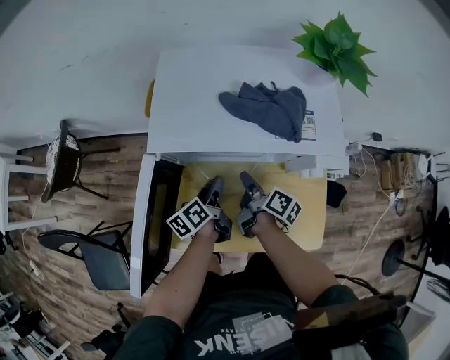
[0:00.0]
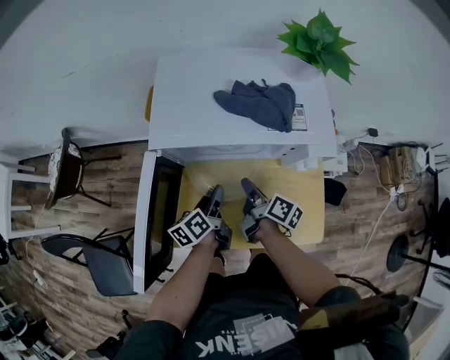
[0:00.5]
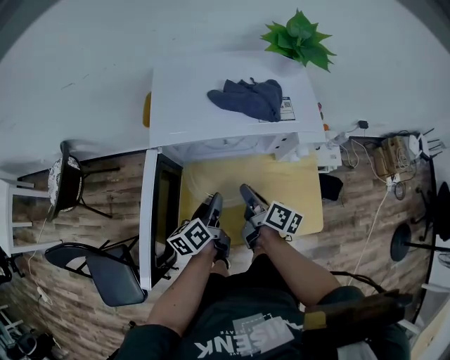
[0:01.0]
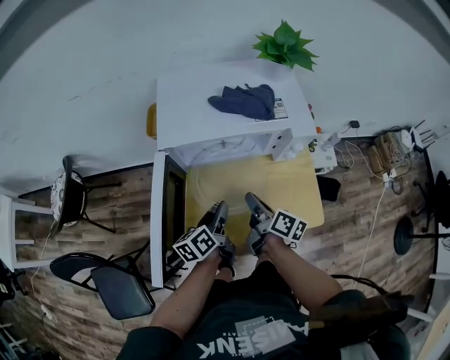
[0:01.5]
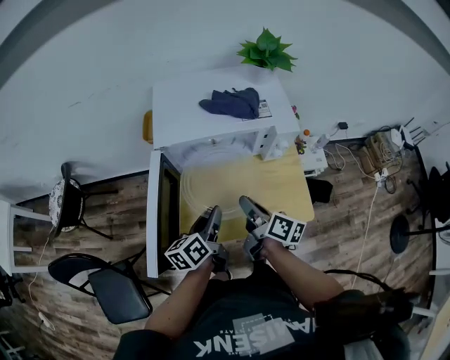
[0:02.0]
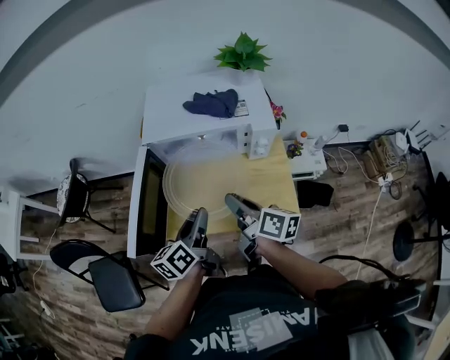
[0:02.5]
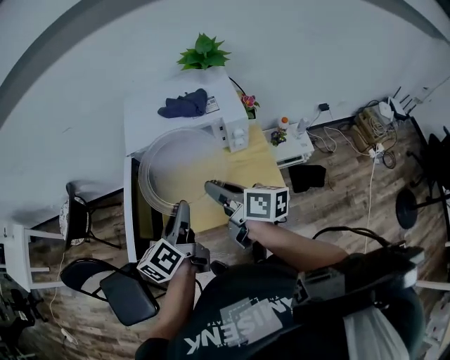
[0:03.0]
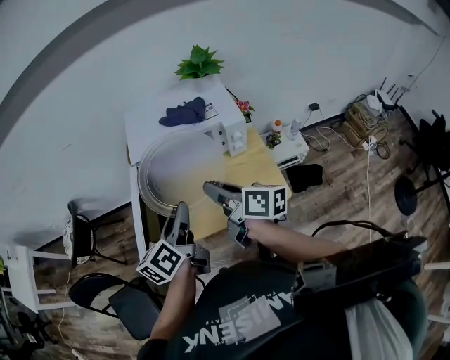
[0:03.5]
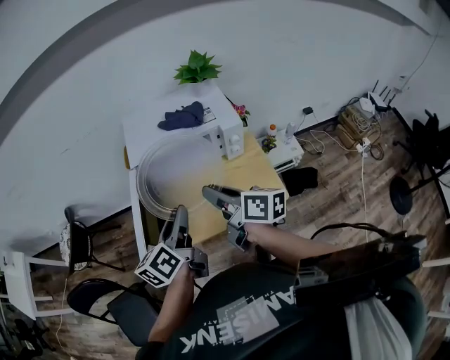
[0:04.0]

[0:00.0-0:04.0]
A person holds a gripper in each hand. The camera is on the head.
0:00.0 to 0:02.0: Both grippers travel together backward and upward, about 20 cm. The left gripper changes its angle by about 20 degrees.
0:02.0 to 0:04.0: Both grippers travel together upward, about 15 cm.

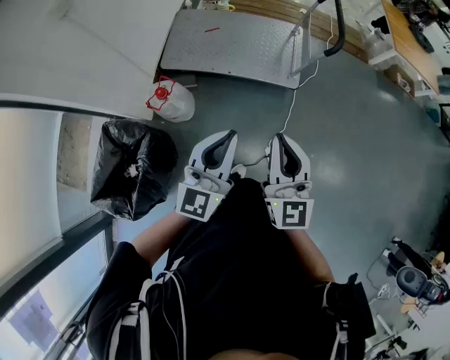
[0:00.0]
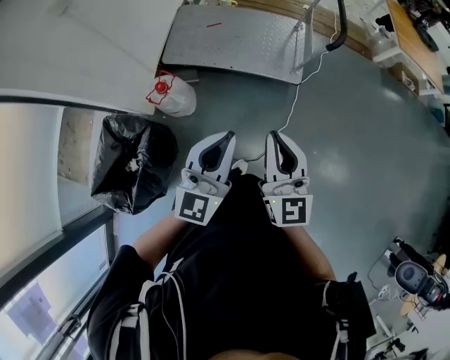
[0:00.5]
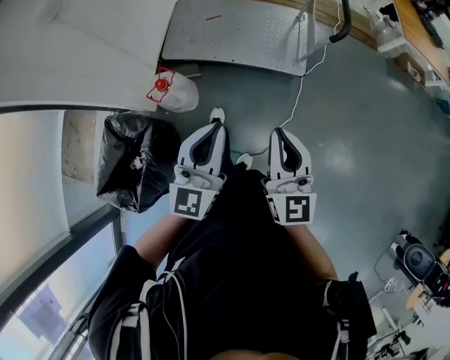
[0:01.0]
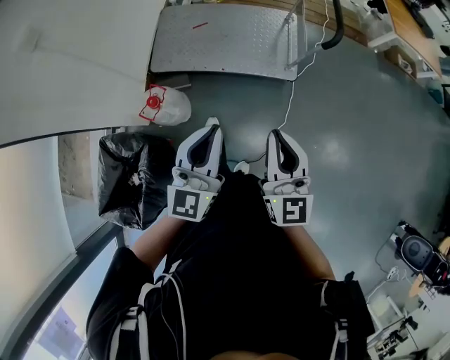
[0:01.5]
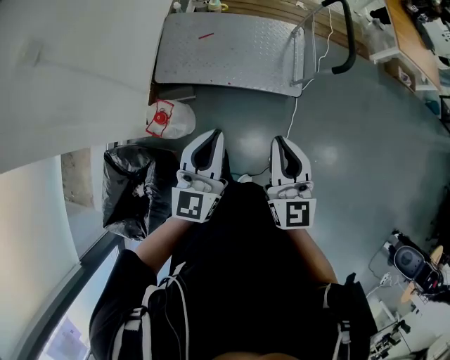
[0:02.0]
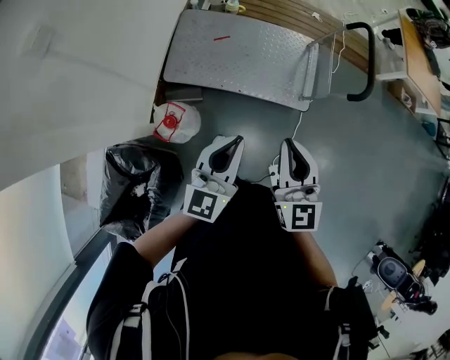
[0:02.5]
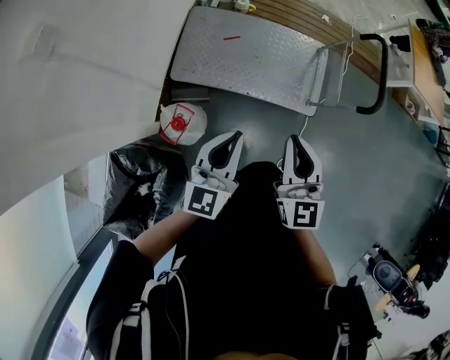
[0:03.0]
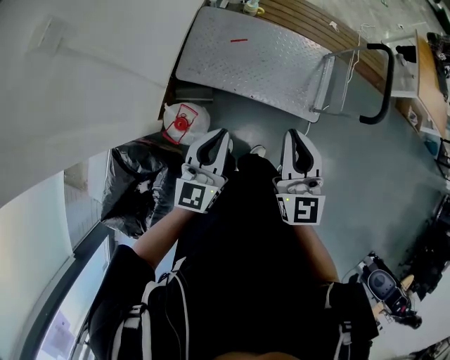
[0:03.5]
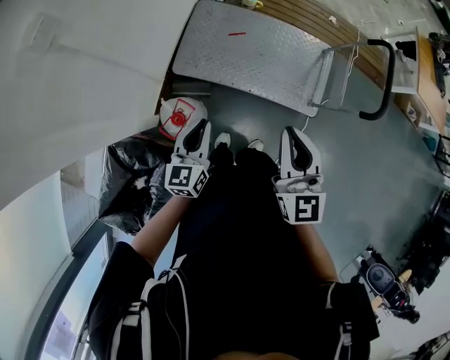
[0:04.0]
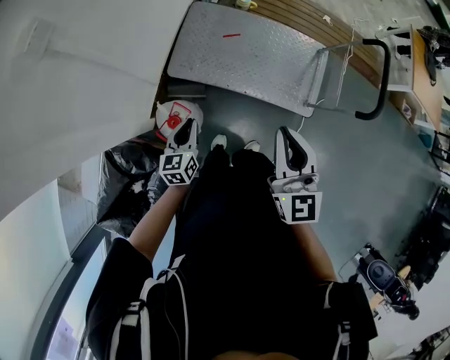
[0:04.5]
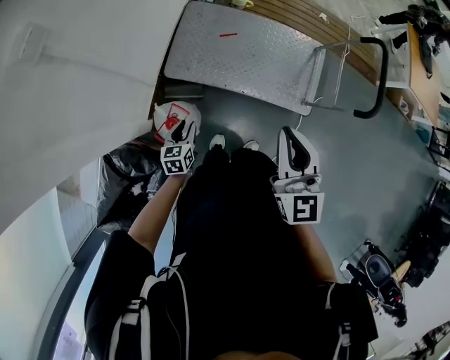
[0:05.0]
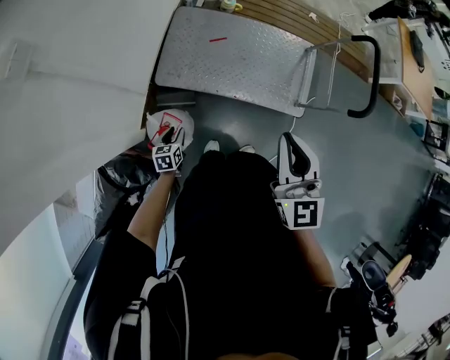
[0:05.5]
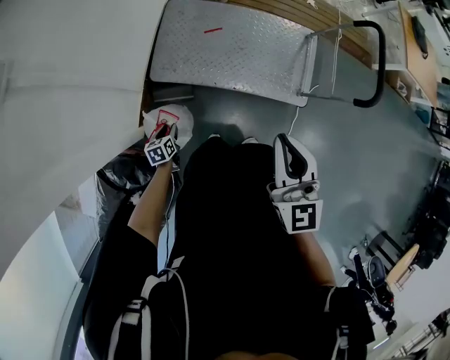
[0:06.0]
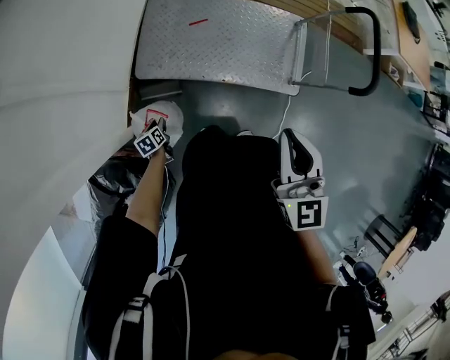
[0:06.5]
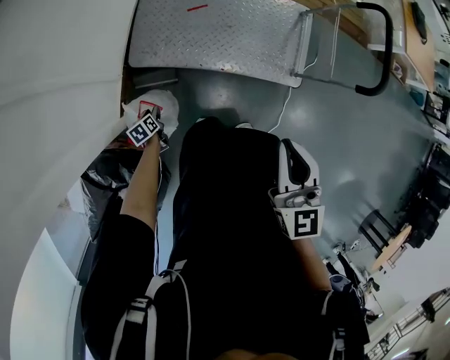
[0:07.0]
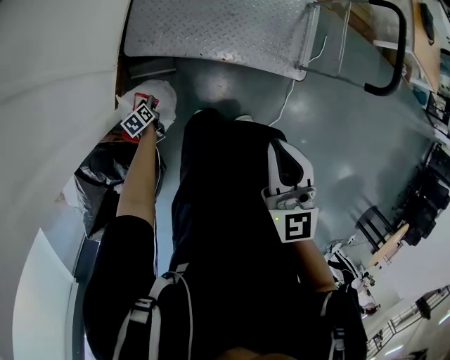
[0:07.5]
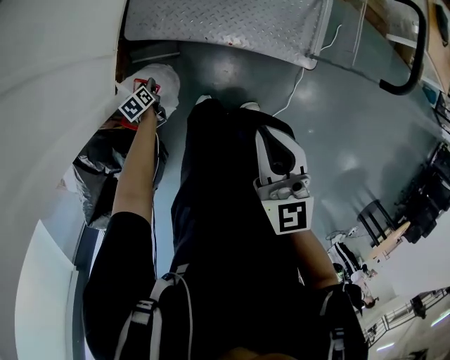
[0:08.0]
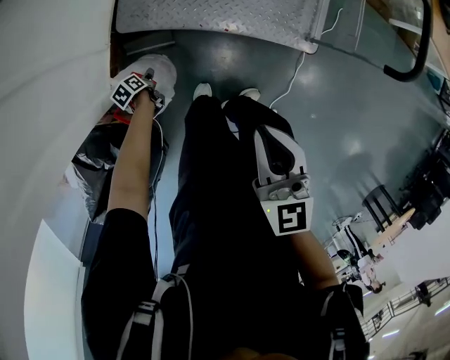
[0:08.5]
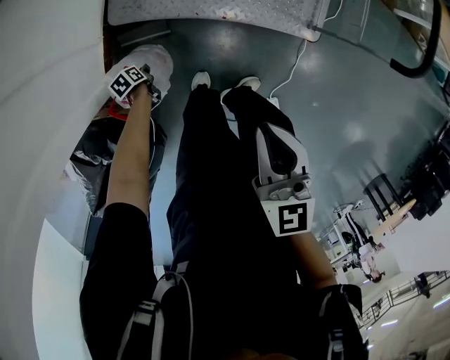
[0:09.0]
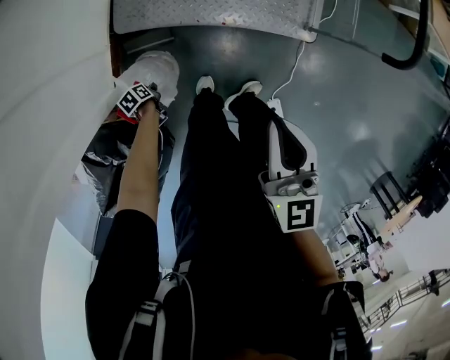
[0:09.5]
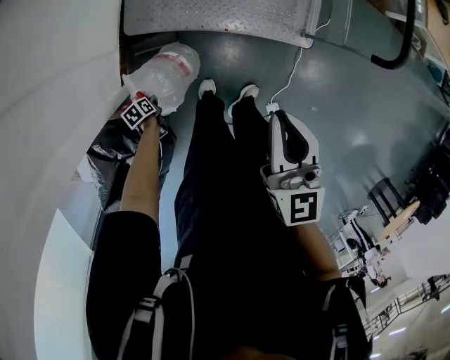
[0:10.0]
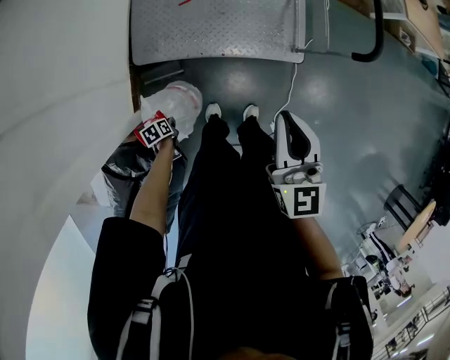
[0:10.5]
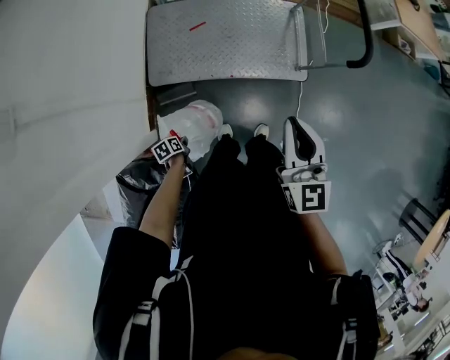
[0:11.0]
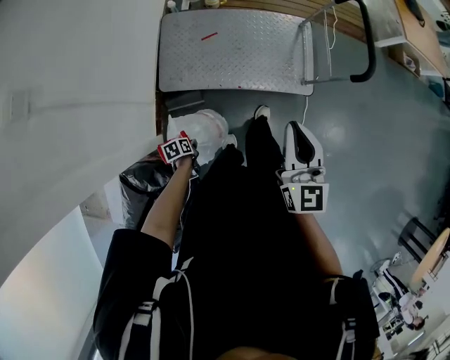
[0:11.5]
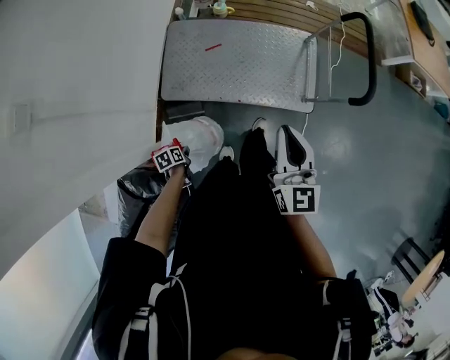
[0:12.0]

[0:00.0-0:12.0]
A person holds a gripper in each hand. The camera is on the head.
0:00.0 to 0:02.0: The right gripper is displaced forward by some 15 cm; the left gripper goes roughly 20 cm forward and to the left.
0:02.0 to 0:04.0: The right gripper goes about 20 cm forward and to the left. The left gripper moves to the left, downward and forward, roughly 30 cm, and changes its angle by approximately 20 degrees.
0:04.0 to 0:06.0: The left gripper is displaced downward by some 35 cm, points its fingers about 40 degrees further downward, and opens its fingers.
0:06.0 to 0:08.0: The two grippers go some 15 cm downward.
0:08.0 to 0:10.0: The right gripper travels upward by about 10 cm. The left gripper shifts by about 10 cm, and closes up.
0:10.0 to 0:12.0: The left gripper moves upward and to the right, approximately 15 cm. The right gripper heads to the right, upward and forward, covering roughly 10 cm.

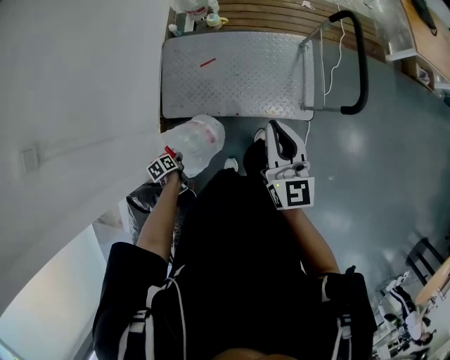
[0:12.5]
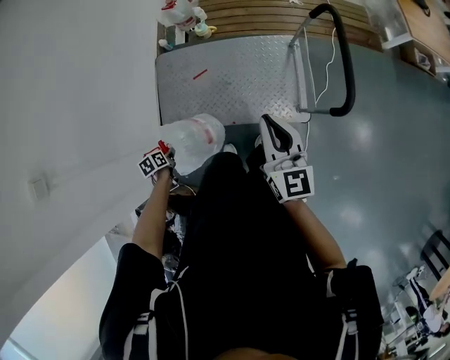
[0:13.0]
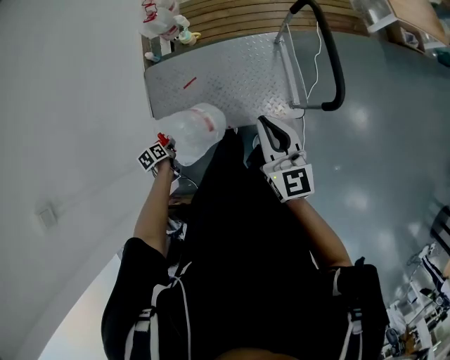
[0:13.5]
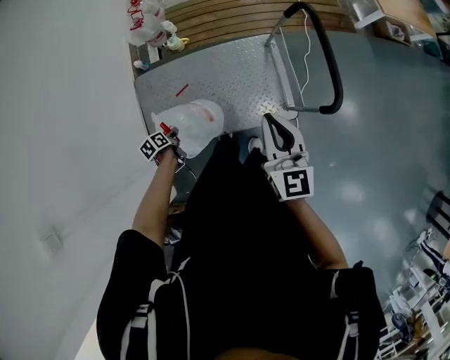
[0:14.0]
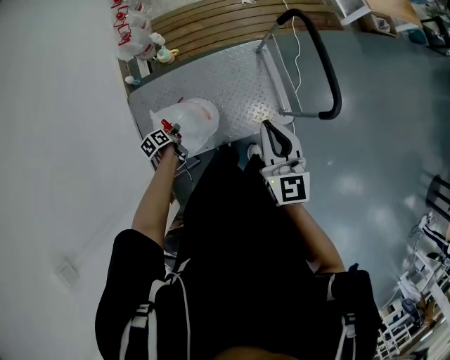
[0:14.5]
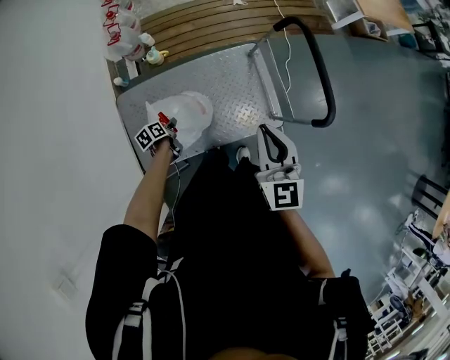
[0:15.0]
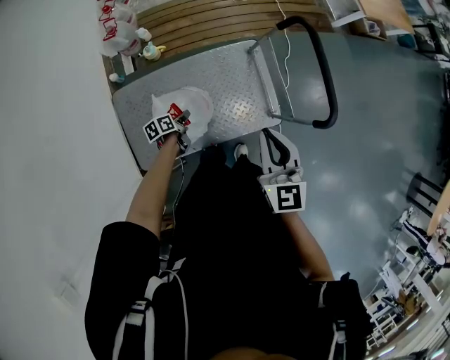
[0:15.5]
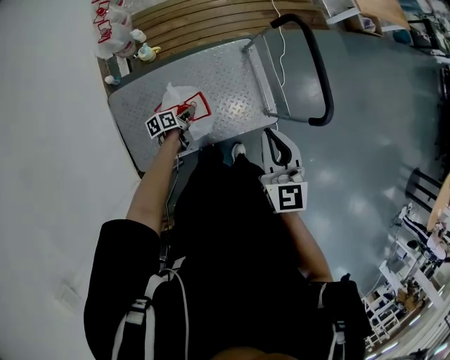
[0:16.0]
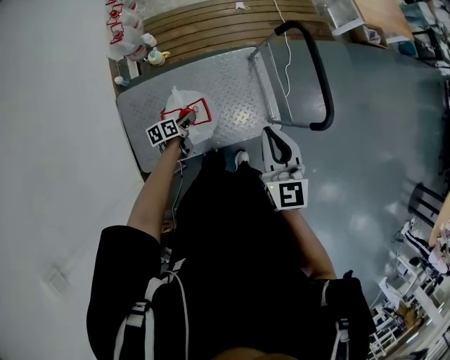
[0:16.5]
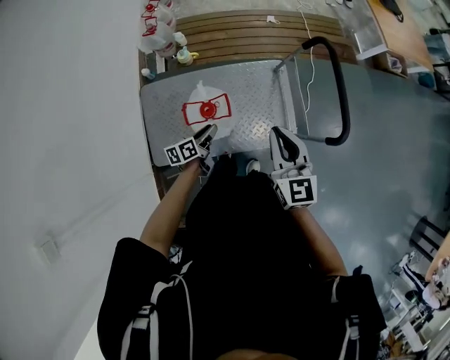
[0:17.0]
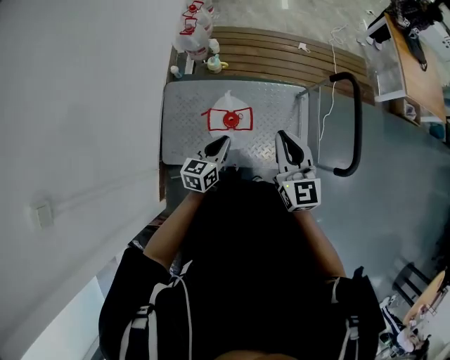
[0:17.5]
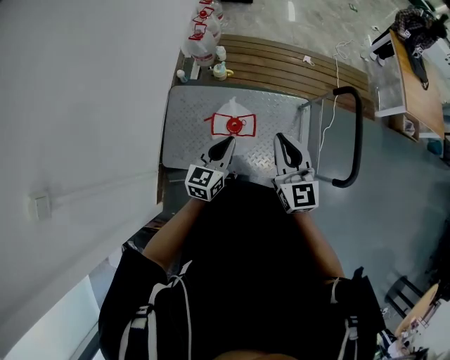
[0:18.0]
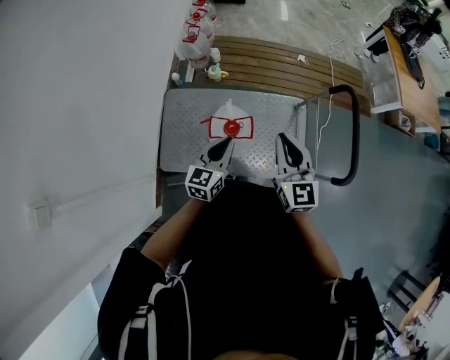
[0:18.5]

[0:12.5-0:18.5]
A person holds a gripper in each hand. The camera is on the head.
0:12.5 to 0:14.5: The left gripper shifts some 40 cm forward, and changes its angle by approximately 20 degrees, while the right gripper moves forward, roughly 15 cm, and rotates approximately 20 degrees.
0:14.5 to 0:16.5: The left gripper heads forward and to the right, covering about 10 cm, rotates roughly 20 degrees, and opens up.
0:16.5 to 0:18.5: The left gripper moves upward, about 25 cm, turns by approximately 50 degrees, and closes; the right gripper changes place by approximately 10 cm.

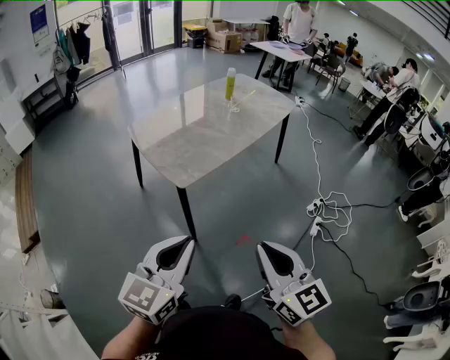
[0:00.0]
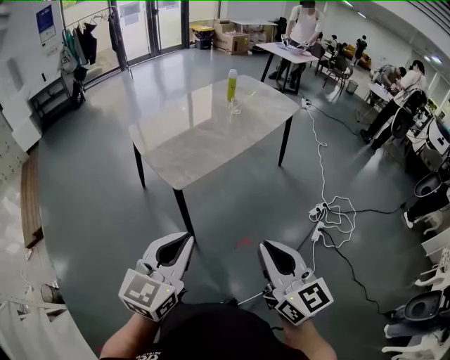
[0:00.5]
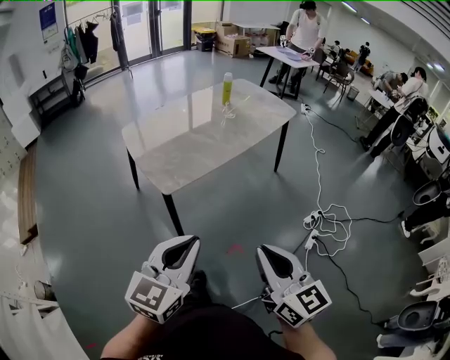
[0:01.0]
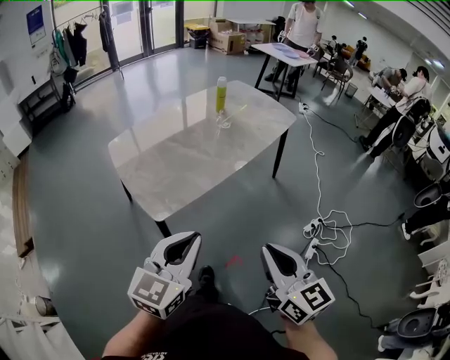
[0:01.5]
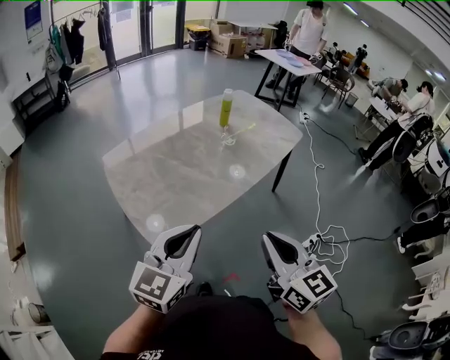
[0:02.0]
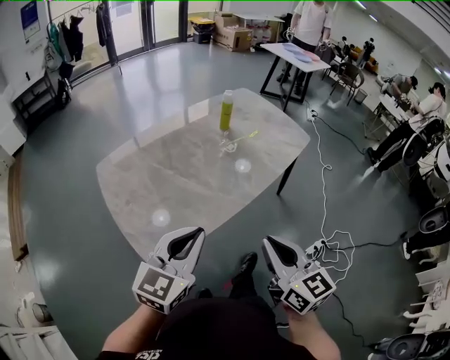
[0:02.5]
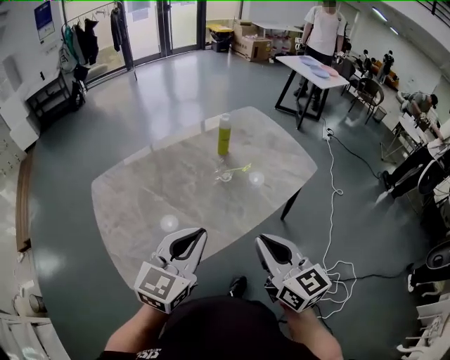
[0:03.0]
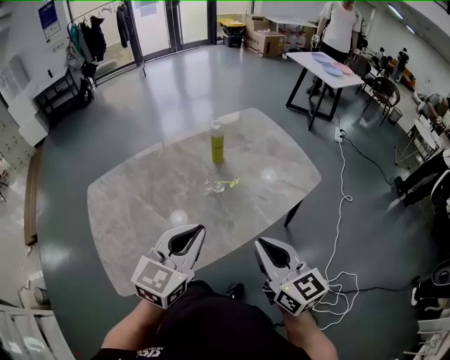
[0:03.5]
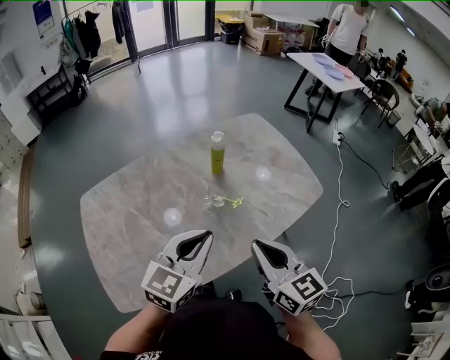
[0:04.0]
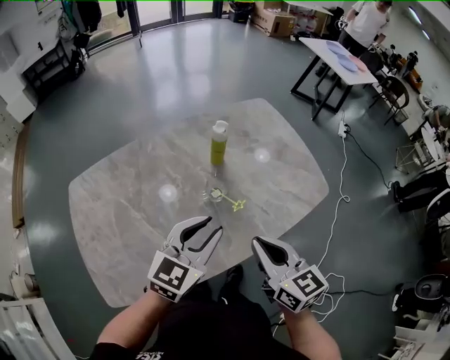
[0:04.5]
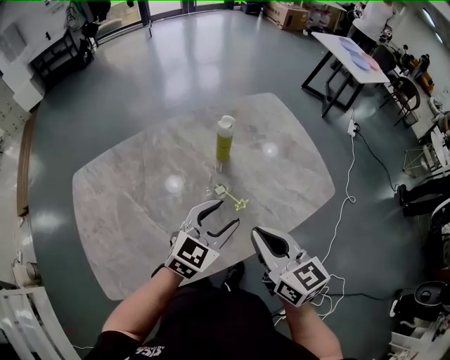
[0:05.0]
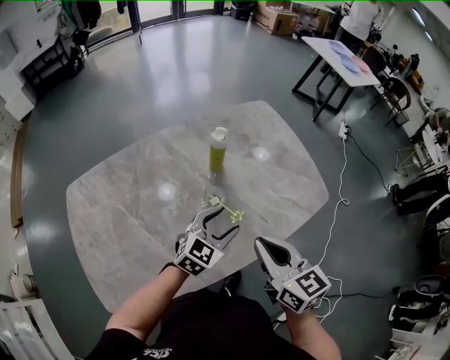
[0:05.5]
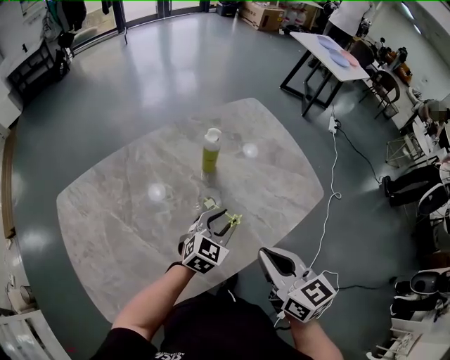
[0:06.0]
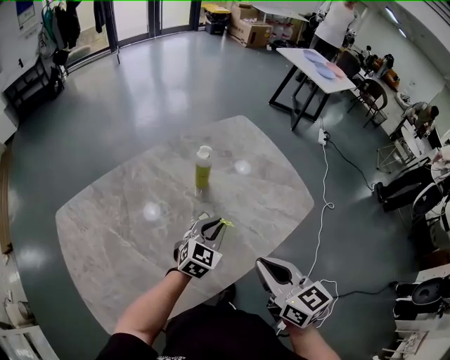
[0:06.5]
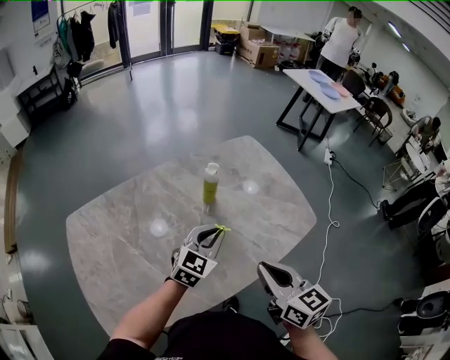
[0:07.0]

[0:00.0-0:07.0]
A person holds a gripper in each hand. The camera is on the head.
0:00.0 to 0:02.0: The two grippers go some 30 cm forward.
0:02.0 to 0:03.5: The two grippers go some 35 cm forward and to the right.
0:03.5 to 0:05.0: The right gripper moves forward, about 15 cm. Meanwhile the left gripper shifts about 20 cm forward and downward, and opens up.
0:05.0 to 0:07.0: The left gripper moves forward, roughly 5 cm, reaches some 10 cm downward, then returns, and closes its fingers.
